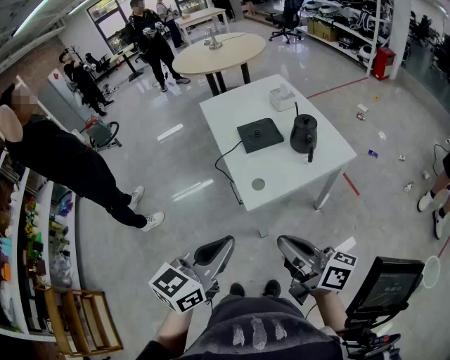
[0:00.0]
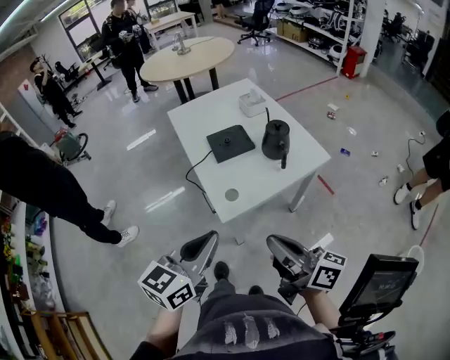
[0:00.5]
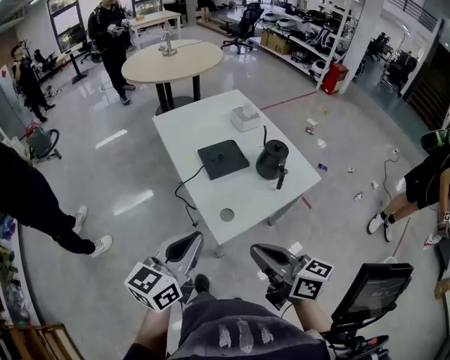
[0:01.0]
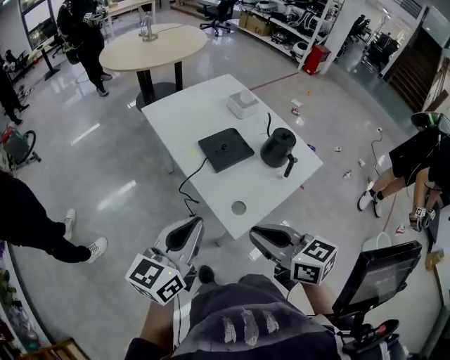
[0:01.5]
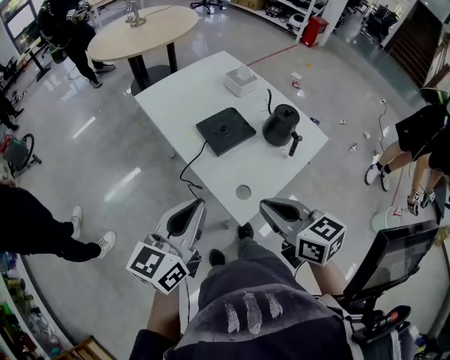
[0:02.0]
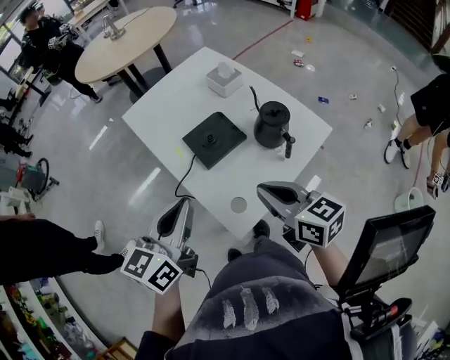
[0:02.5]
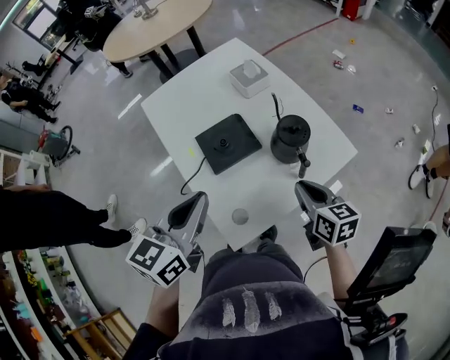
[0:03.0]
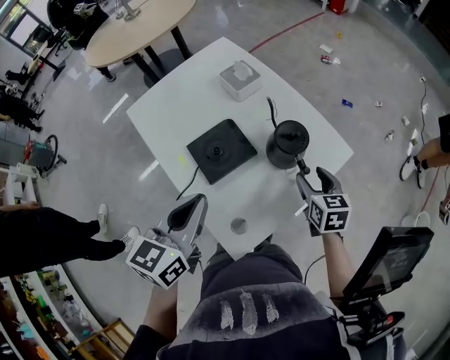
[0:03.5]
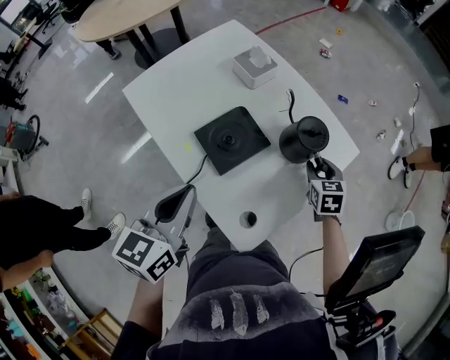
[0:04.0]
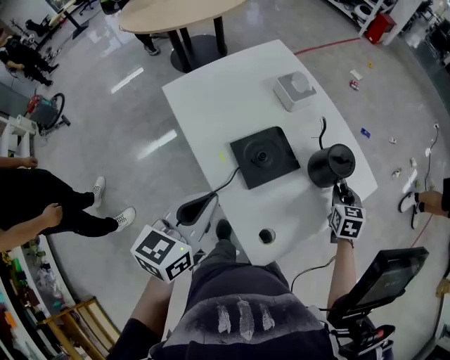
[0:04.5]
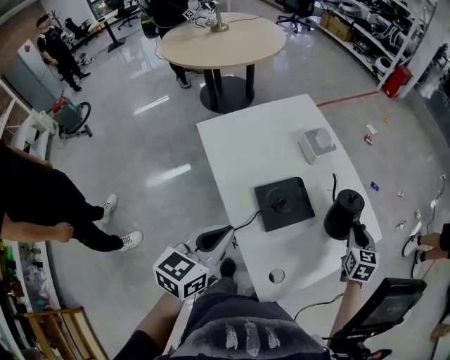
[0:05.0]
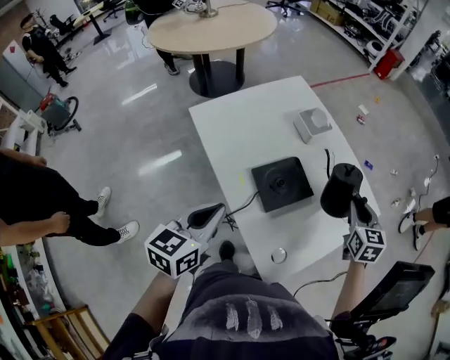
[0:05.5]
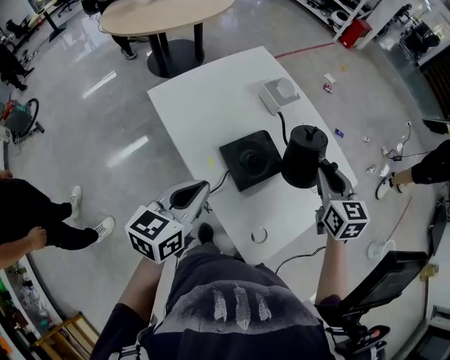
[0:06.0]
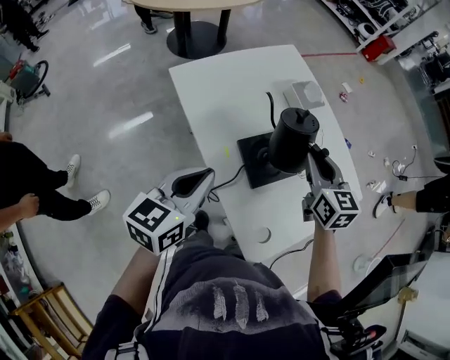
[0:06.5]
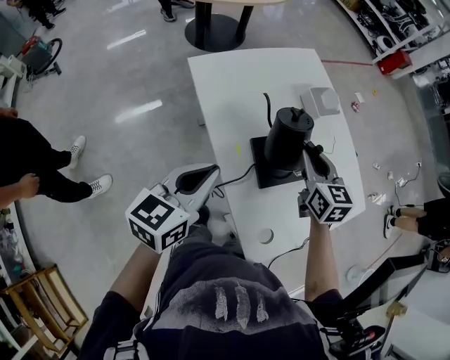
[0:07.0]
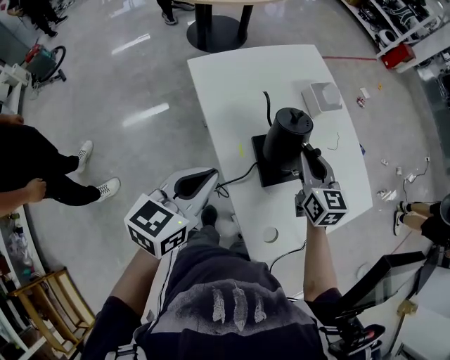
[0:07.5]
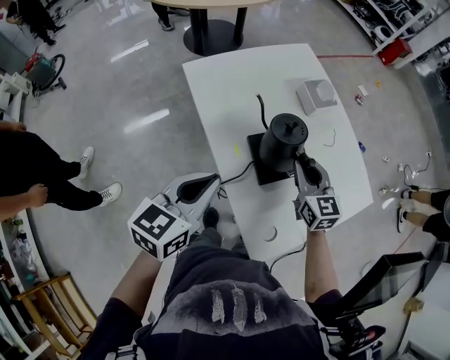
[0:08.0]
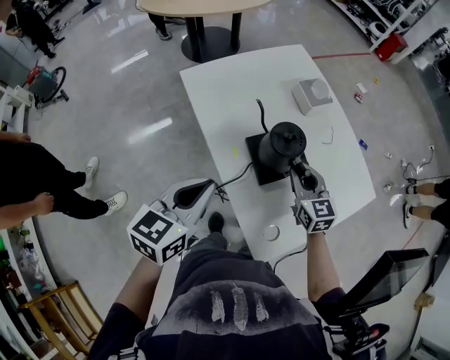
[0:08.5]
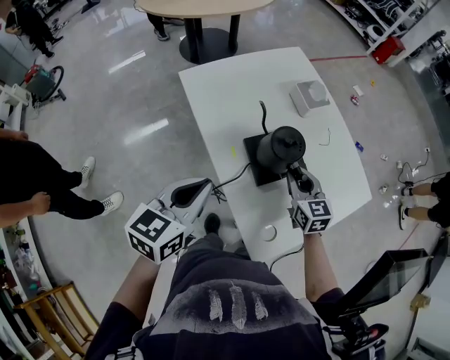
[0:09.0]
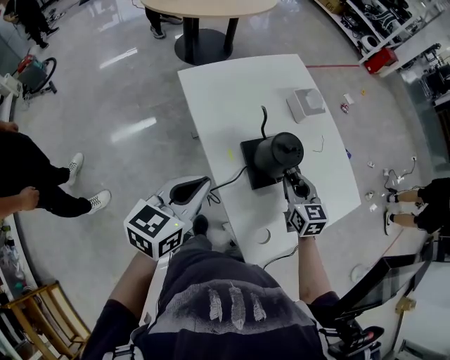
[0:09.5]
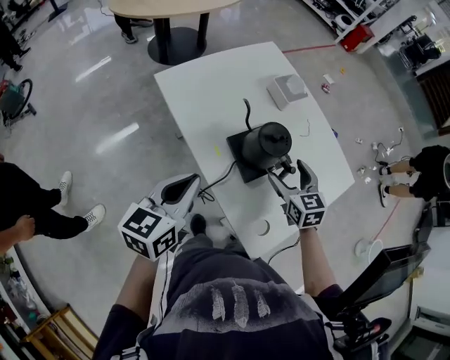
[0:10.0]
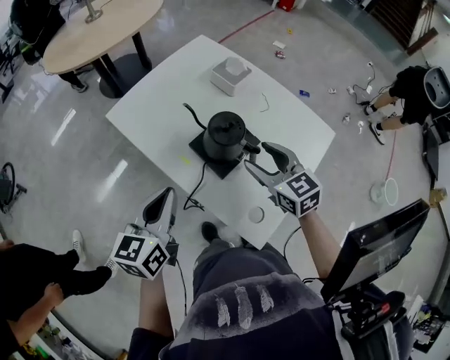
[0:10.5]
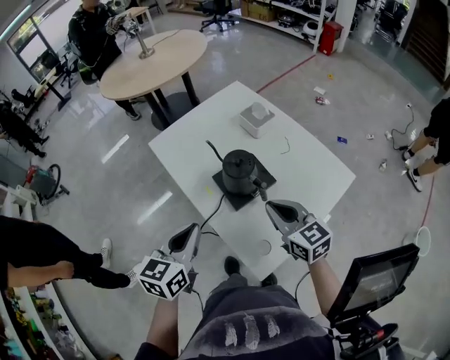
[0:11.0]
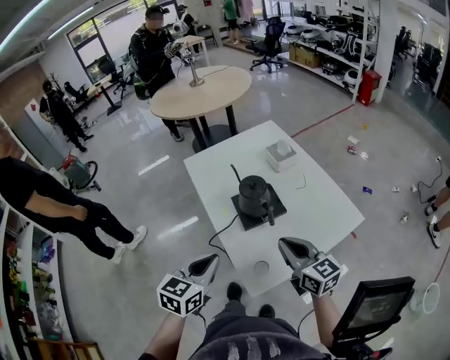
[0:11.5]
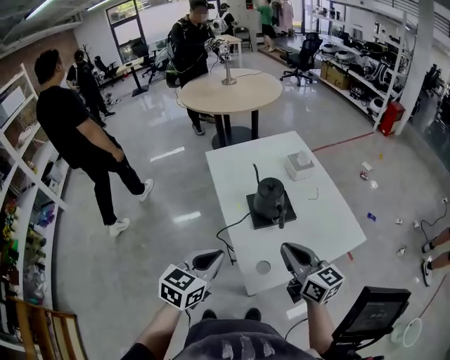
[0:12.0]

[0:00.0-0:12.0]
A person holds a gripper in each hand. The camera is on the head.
0:00.0 to 0:02.0: Both grippers move forward and to the left, about 25 cm. The right gripper tilts its fingers roughly 30 degrees downward.
0:02.0 to 0:04.0: The left gripper goes about 20 cm forward, while the right gripper moves forward, to the right and downward, about 40 cm, turns by roughly 40 degrees, and opens up.
0:04.0 to 0:06.0: The right gripper is displaced upward and to the left by roughly 20 cm, and turns by approximately 20 degrees. The left gripper travels to the left by some 5 cm.
0:06.0 to 0:08.0: The right gripper heads to the left and downward, covering about 15 cm.
0:08.0 to 0:10.0: The right gripper opens.
0:10.0 to 0:12.0: The left gripper moves backward and to the right, some 20 cm, while the right gripper heads backward and upward, covering some 20 cm, changes its angle by some 40 degrees, and closes its fingers.

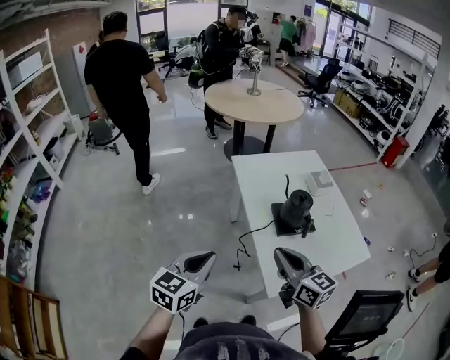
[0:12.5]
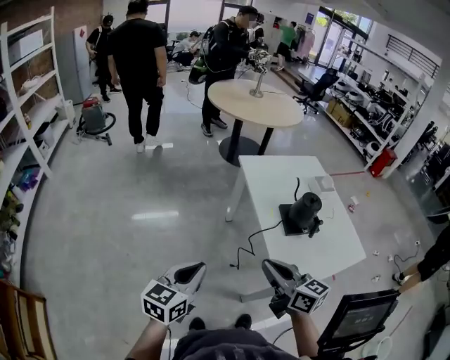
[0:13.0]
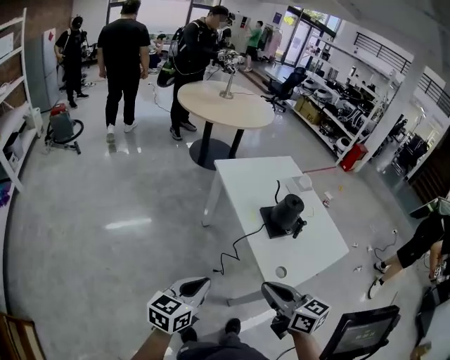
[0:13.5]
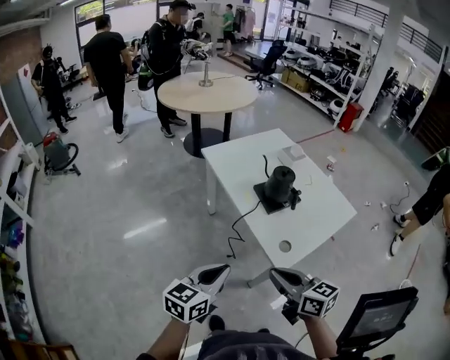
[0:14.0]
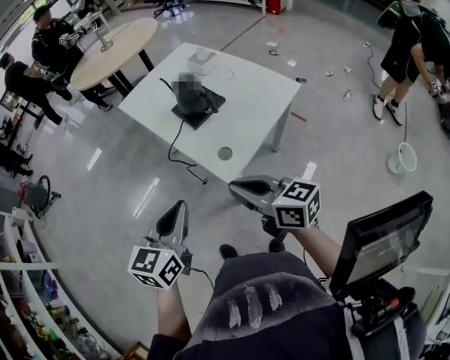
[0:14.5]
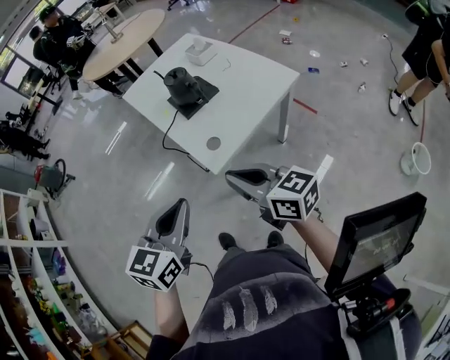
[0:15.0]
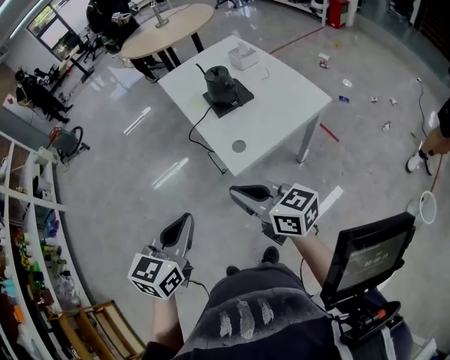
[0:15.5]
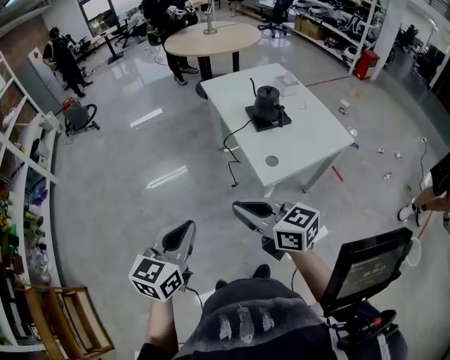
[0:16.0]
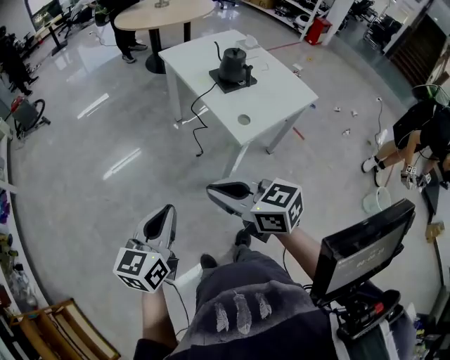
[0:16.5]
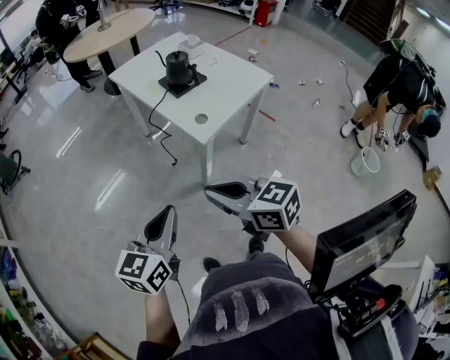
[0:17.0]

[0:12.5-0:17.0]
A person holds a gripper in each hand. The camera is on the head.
0:12.5 to 0:14.5: The left gripper moves backward and to the right, approximately 15 cm. Meanwhile the right gripper travels backward by about 15 cm.
0:14.5 to 0:17.0: The left gripper swings left and right, about 25 cm each way, with 2 reversals. The right gripper goes left and right, some 25 cm each way, reversing 2 times.

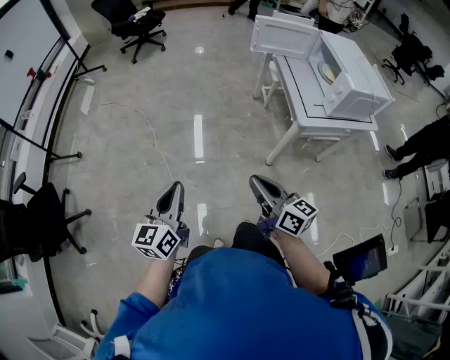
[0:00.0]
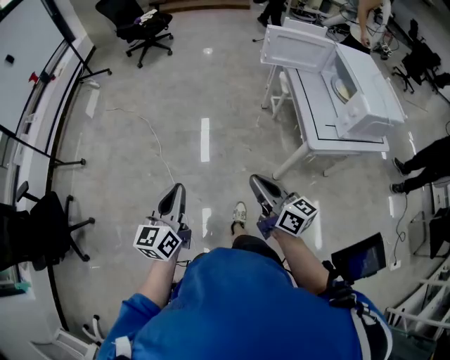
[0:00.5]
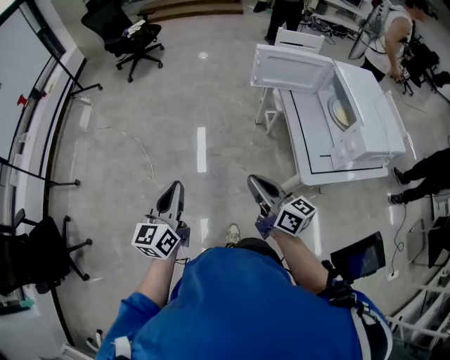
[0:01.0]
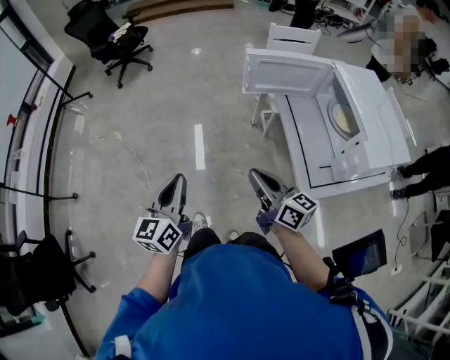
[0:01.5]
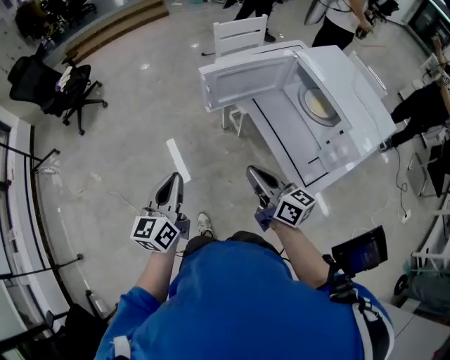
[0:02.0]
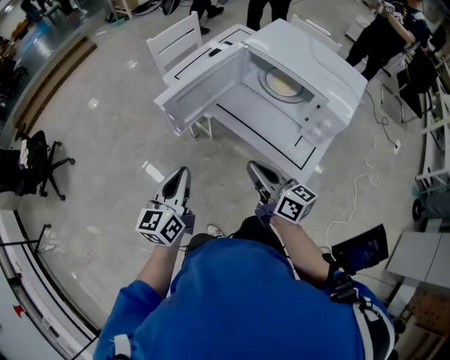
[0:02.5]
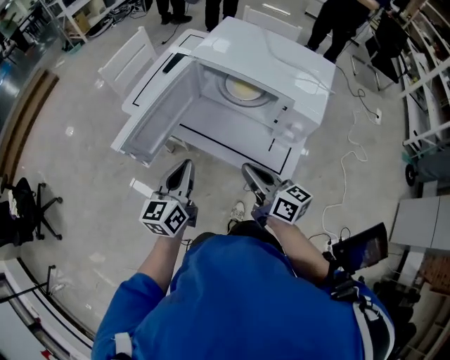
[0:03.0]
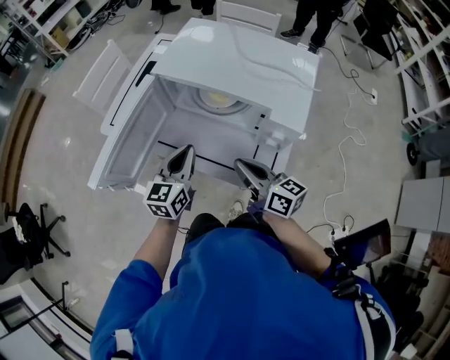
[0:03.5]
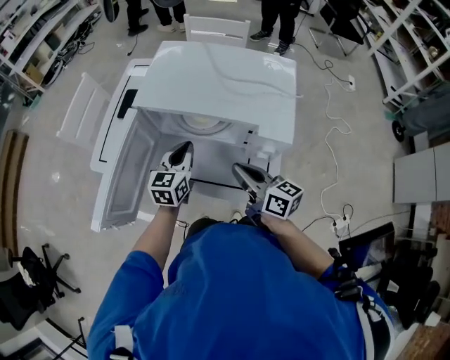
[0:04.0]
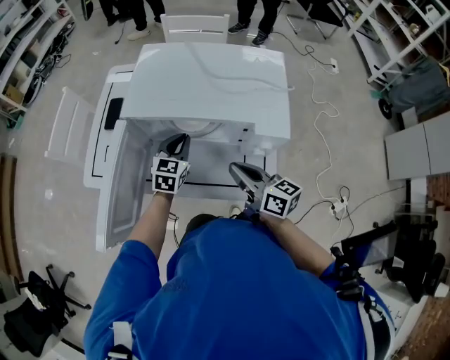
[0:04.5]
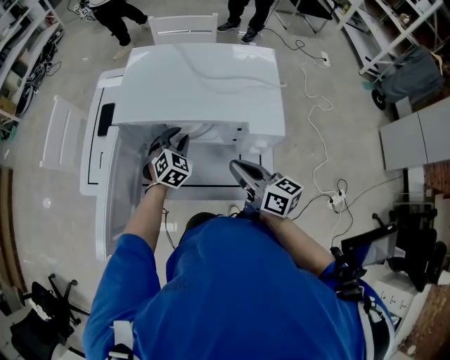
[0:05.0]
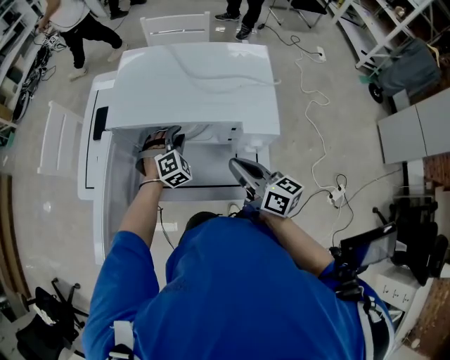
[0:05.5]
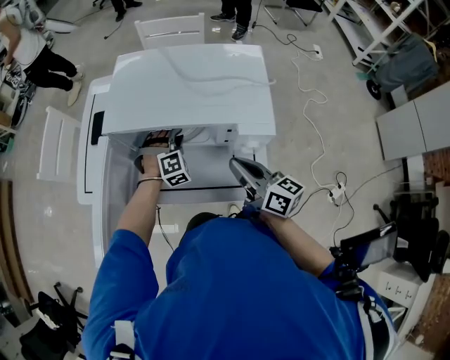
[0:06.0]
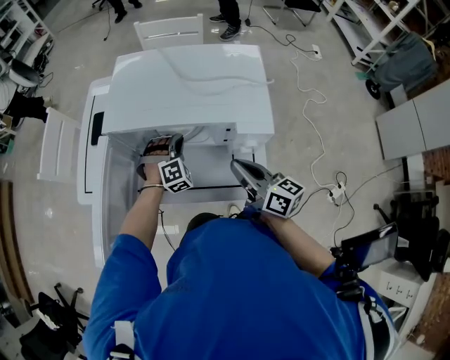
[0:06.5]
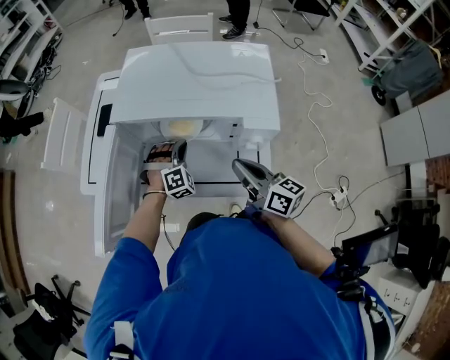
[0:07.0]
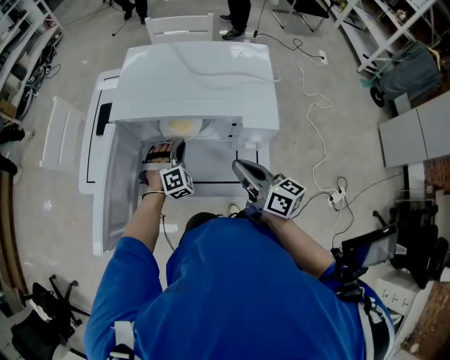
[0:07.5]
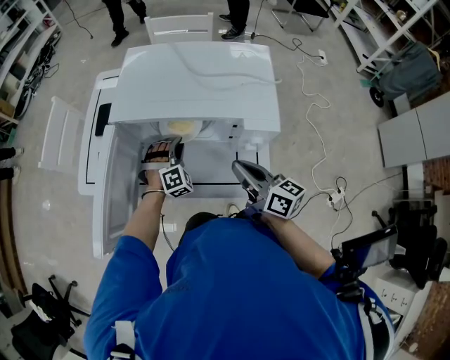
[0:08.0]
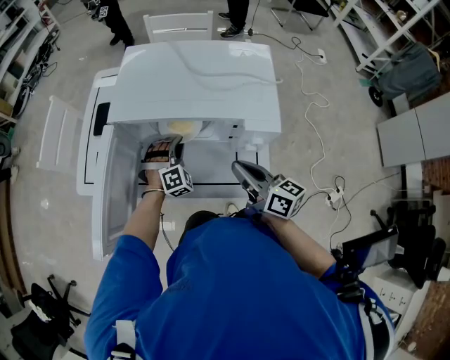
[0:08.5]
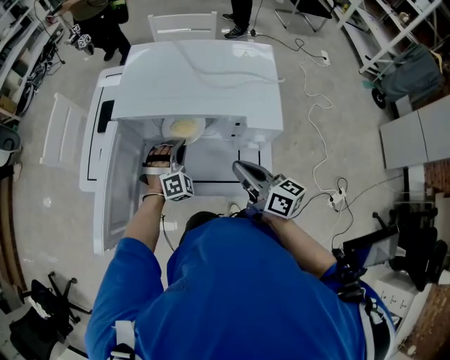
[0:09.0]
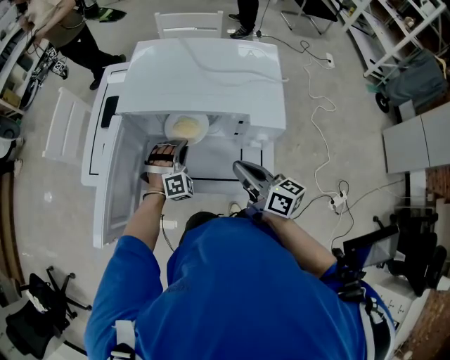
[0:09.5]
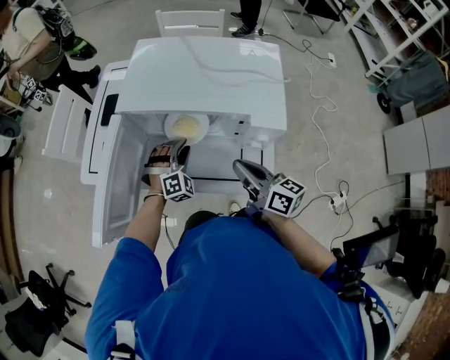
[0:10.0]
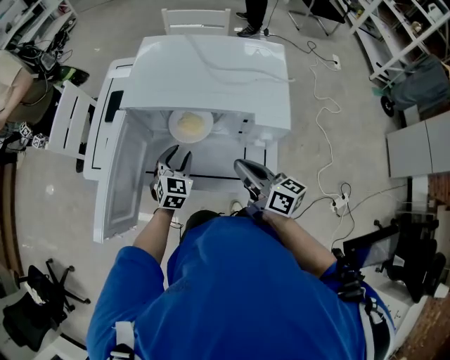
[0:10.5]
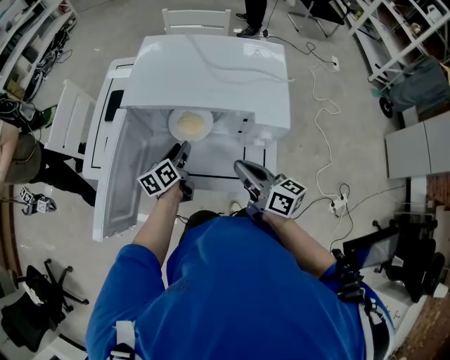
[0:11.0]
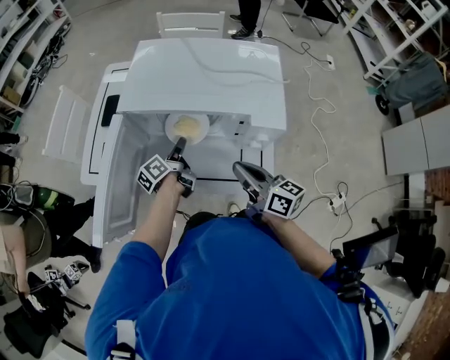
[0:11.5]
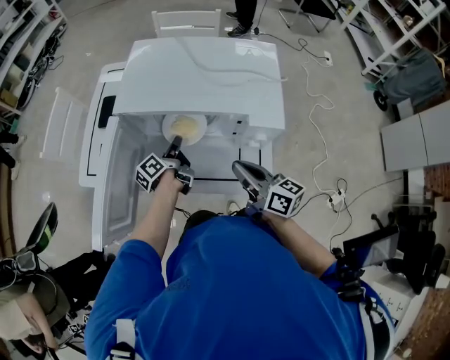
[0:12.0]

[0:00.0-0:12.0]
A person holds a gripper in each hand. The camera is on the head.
0:00.0 to 0:02.0: The pair of grippers is taken forward, approximately 50 cm. The right gripper swivels approximately 20 degrees, while the left gripper turns by approximately 20 degrees.
0:02.0 to 0:04.0: The left gripper shifts by roughly 50 cm, and swivels roughly 60 degrees. Meanwhile the right gripper ends up some 25 cm from where it was, and swivels some 50 degrees.
0:04.0 to 0:06.0: The left gripper is displaced downward, to the right and forward by approximately 15 cm, twists roughly 80 degrees clockwise, seen from behind, and opens up.
0:06.0 to 0:08.0: The grippers make only small movements.
0:08.0 to 0:10.0: The grippers move only a little.
0:10.0 to 0:12.0: The left gripper ends up roughly 5 cm from where it was, and rotates around the line of its fingers by about 140 degrees, counterclockwise from behind.
